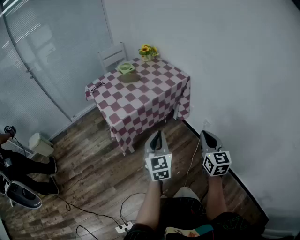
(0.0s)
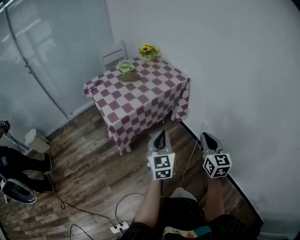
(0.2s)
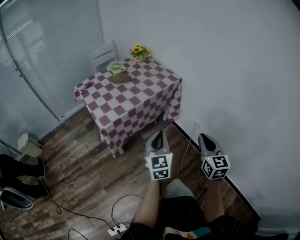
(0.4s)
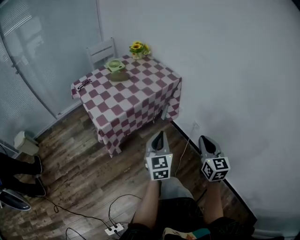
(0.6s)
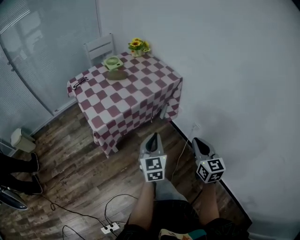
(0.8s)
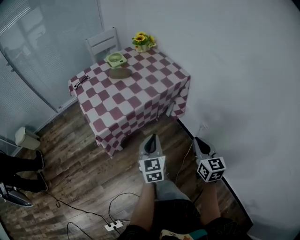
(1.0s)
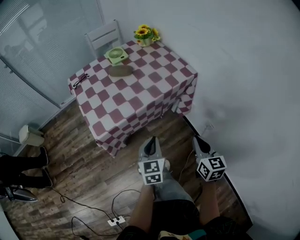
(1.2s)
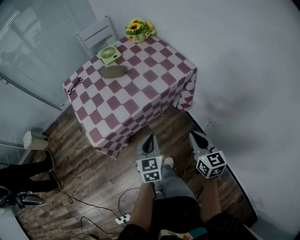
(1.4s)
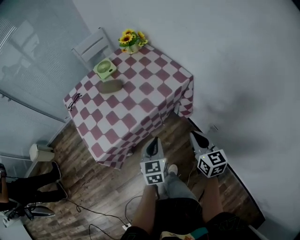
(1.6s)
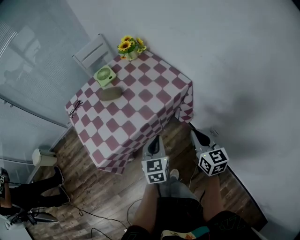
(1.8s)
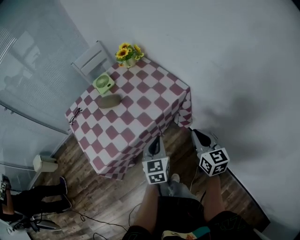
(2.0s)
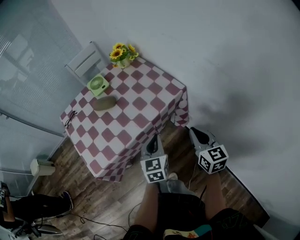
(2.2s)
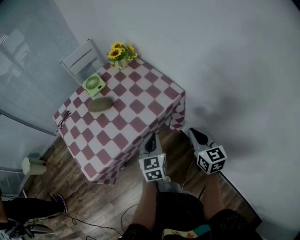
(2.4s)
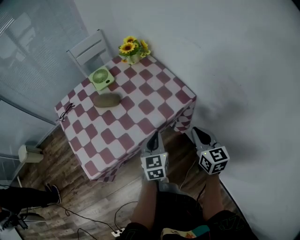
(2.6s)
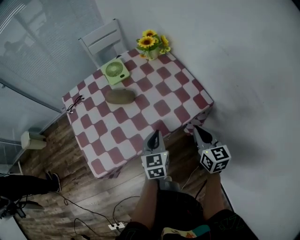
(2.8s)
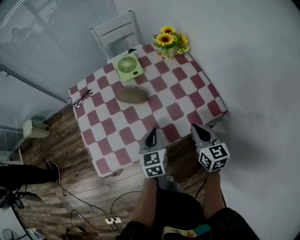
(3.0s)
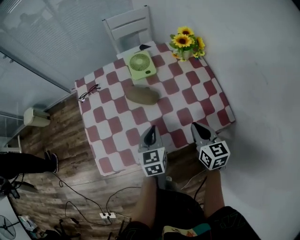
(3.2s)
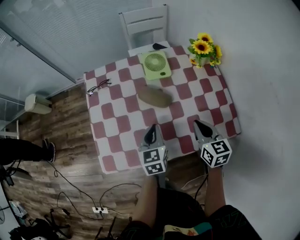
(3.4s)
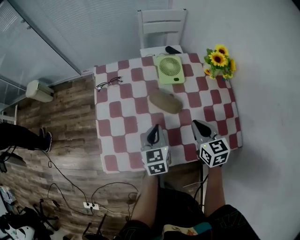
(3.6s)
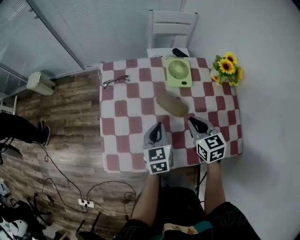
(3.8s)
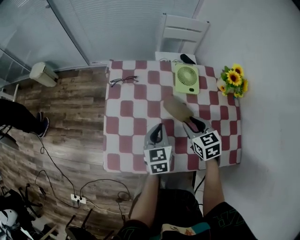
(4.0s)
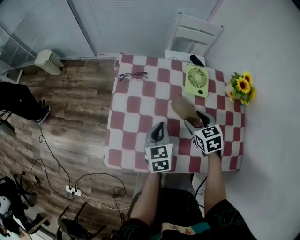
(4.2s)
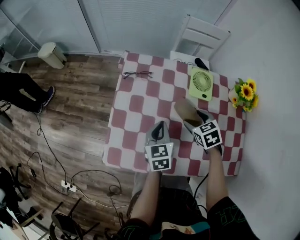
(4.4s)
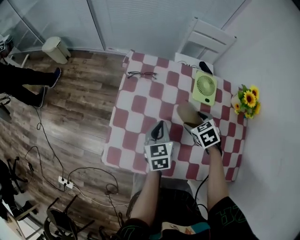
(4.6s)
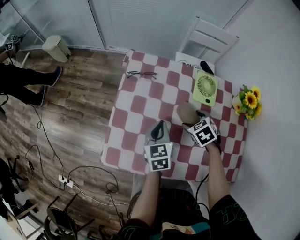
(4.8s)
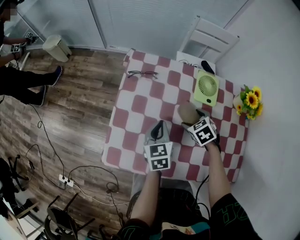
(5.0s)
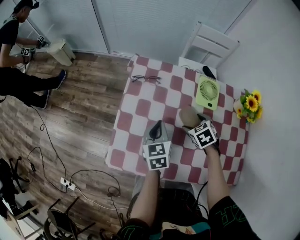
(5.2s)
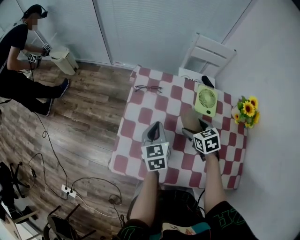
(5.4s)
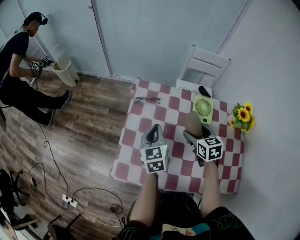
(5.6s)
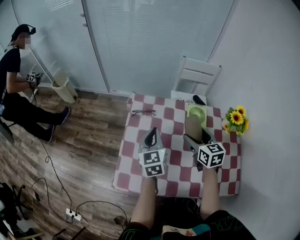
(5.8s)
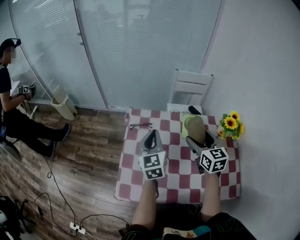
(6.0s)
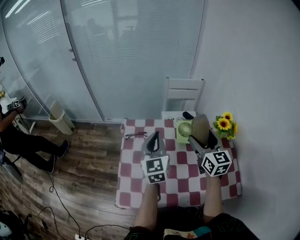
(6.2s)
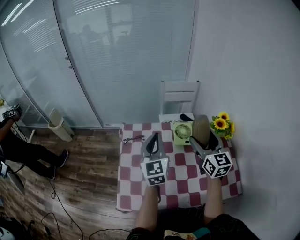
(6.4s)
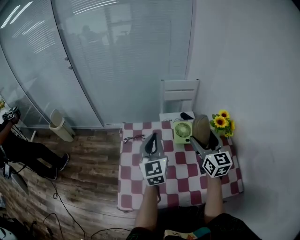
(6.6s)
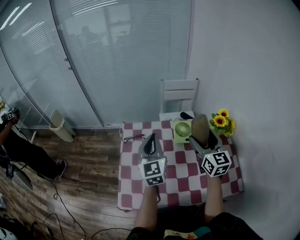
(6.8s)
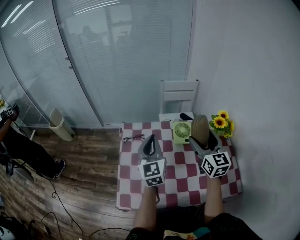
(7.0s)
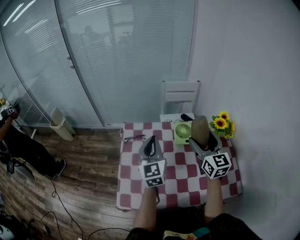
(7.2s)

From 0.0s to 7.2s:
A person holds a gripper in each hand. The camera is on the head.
From 0.0s to 1.4s: Both grippers move forward and downward, some 25 cm. The left gripper swivels roughly 20 degrees.
From 1.4s to 2.8s: Both grippers travel together forward, about 25 cm.
From 2.8s to 4.4s: The right gripper changes place by approximately 40 cm, angles its fingers downward, by some 30 degrees, and opens. Meanwhile the left gripper shifts by approximately 30 cm, and swivels approximately 40 degrees.
From 4.4s to 5.8s: The right gripper is displaced upward by roughly 10 cm, and rotates some 30 degrees; the left gripper shifts approximately 15 cm upward, forward and to the left.
From 5.8s to 7.2s: The two grippers go roughly 15 cm upward and to the right. The right gripper rotates some 30 degrees.

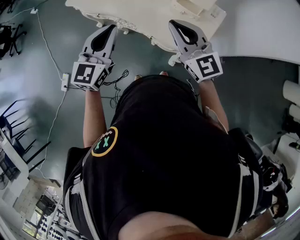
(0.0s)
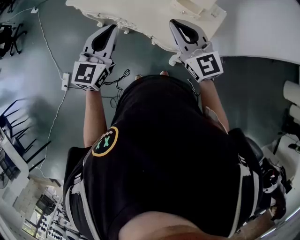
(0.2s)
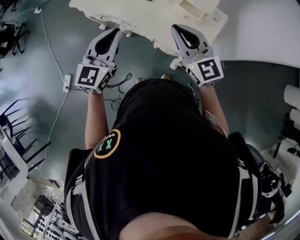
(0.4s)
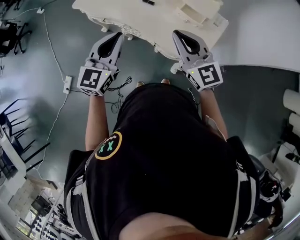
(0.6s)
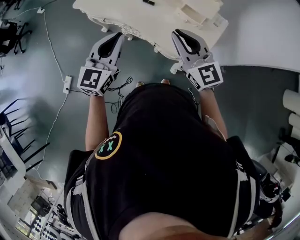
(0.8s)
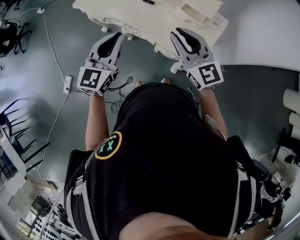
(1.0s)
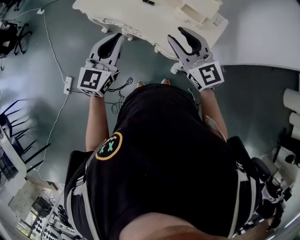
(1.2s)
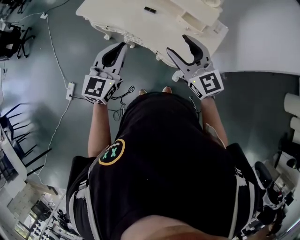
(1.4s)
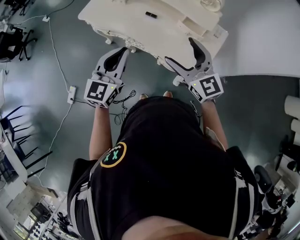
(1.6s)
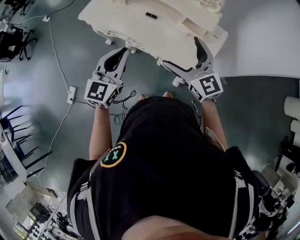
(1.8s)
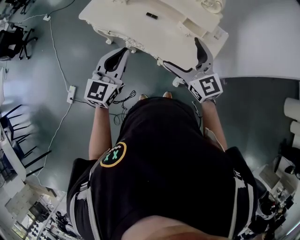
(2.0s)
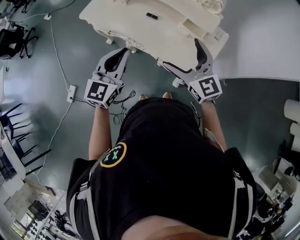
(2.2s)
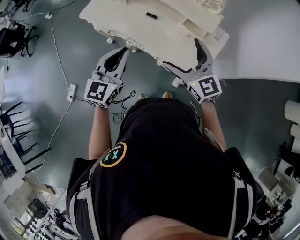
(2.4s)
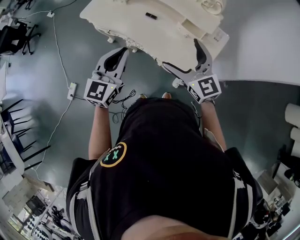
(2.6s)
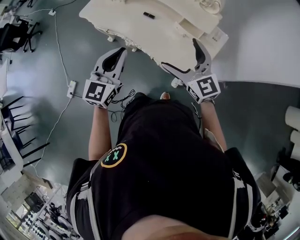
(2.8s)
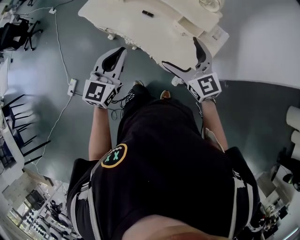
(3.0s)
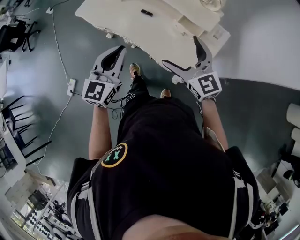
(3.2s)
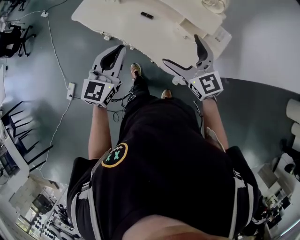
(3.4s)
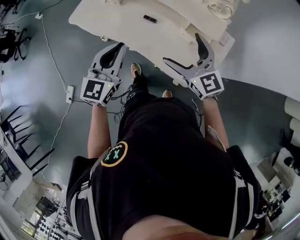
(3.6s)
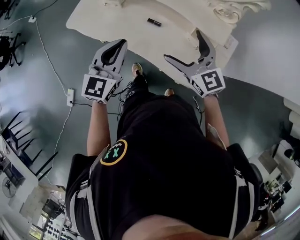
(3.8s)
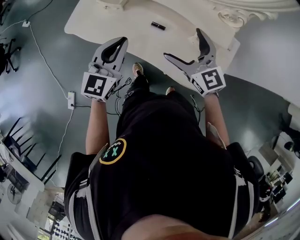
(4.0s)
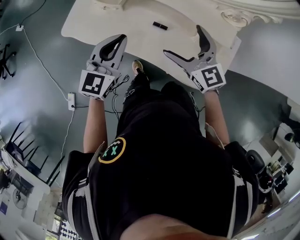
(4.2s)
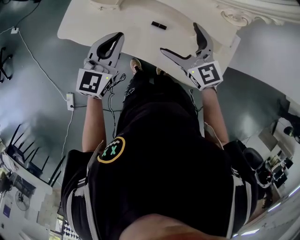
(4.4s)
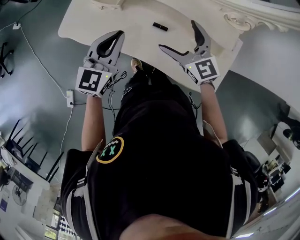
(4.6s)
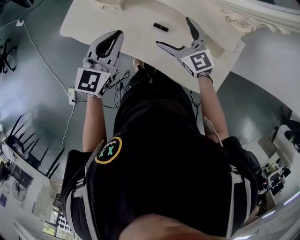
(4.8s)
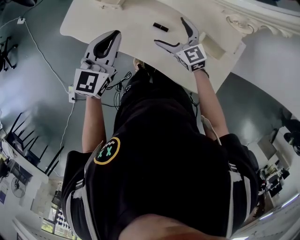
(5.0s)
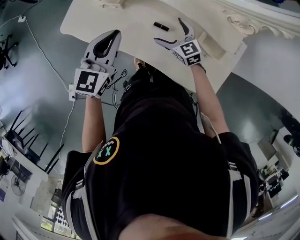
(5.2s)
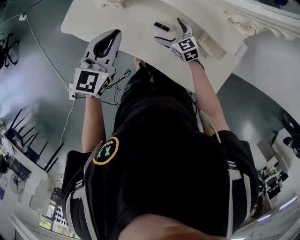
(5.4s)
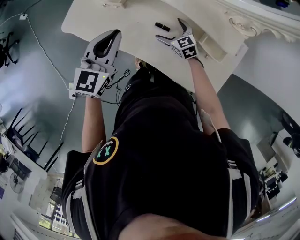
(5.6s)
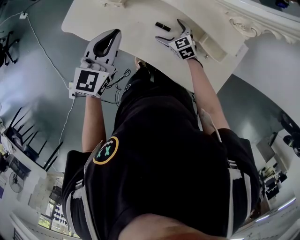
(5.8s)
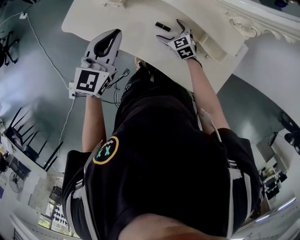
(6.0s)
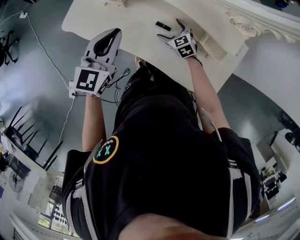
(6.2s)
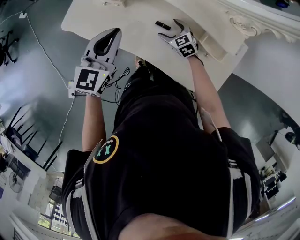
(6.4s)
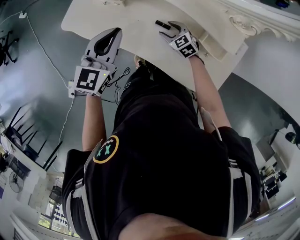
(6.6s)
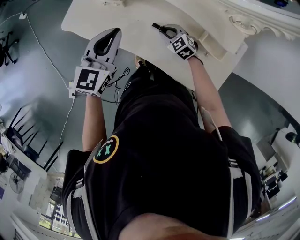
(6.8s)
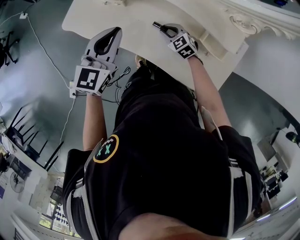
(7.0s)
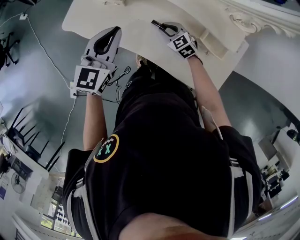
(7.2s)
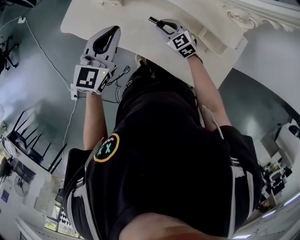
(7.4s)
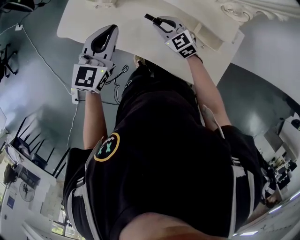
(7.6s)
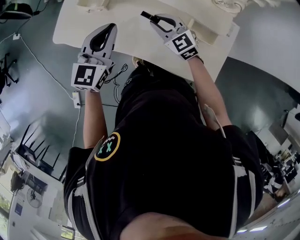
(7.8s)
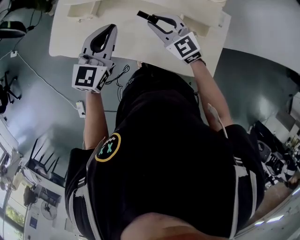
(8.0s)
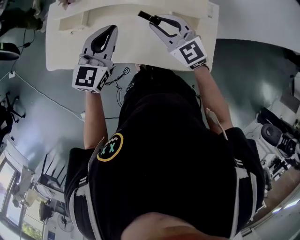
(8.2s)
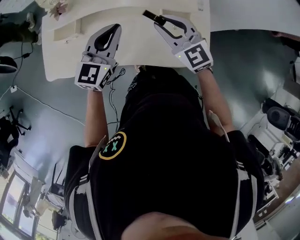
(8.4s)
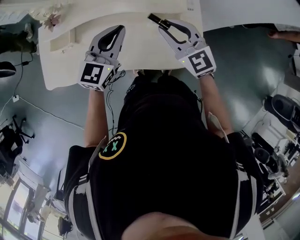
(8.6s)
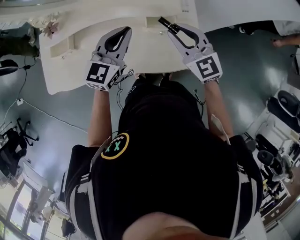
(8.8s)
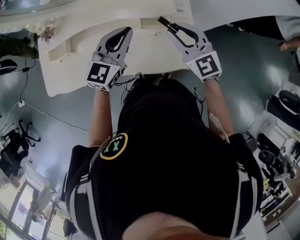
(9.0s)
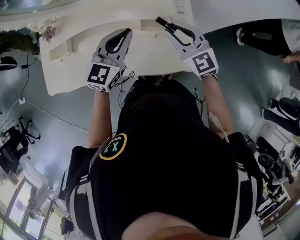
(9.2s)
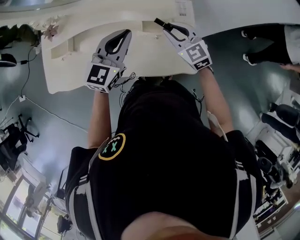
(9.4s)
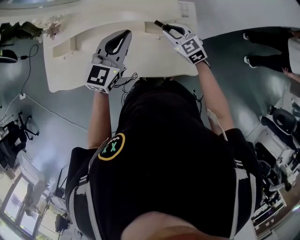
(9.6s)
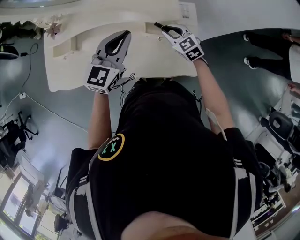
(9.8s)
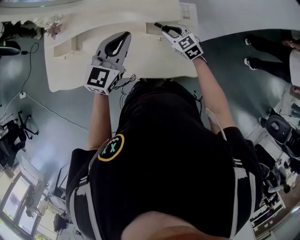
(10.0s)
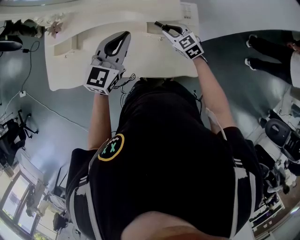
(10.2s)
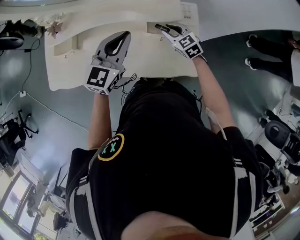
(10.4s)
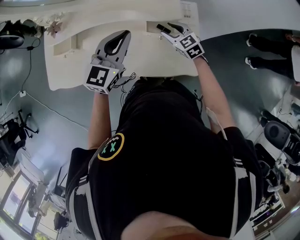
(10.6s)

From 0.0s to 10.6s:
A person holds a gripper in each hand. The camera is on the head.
From 0.0s to 1.6s: The right gripper opens its fingers.
From 1.6s to 3.0s: The grippers both shift to the right by approximately 5 cm.
From 3.0s to 4.6s: Both grippers move forward and to the left, about 30 cm.
From 4.6s to 6.0s: The right gripper travels downward by approximately 20 cm, and rotates roughly 30 degrees.
From 6.0s to 7.6s: The right gripper moves upward, some 10 cm, and closes its fingers.
From 7.6s to 9.0s: The left gripper changes place by roughly 25 cm, and rotates some 30 degrees, while the right gripper moves about 35 cm, and turns by approximately 40 degrees.
From 9.0s to 10.6s: The right gripper is displaced downward by roughly 20 cm, and rotates approximately 20 degrees.

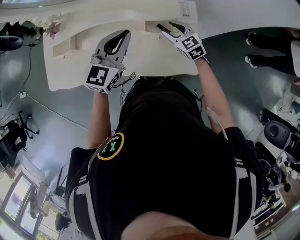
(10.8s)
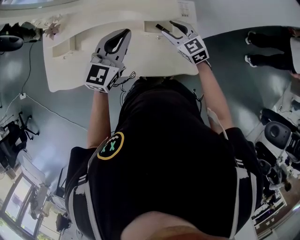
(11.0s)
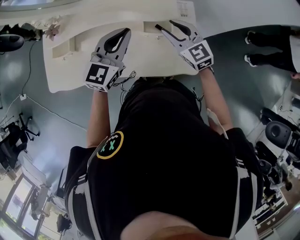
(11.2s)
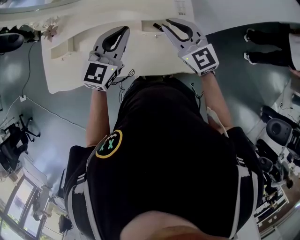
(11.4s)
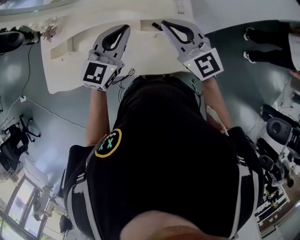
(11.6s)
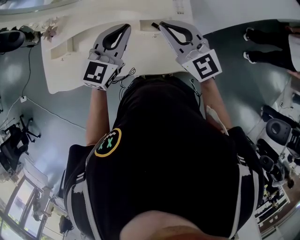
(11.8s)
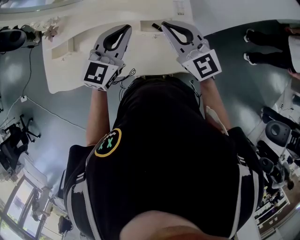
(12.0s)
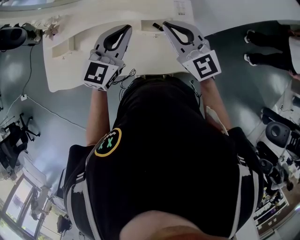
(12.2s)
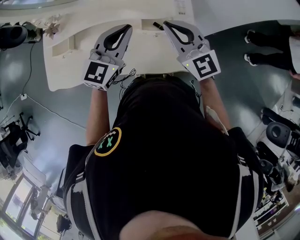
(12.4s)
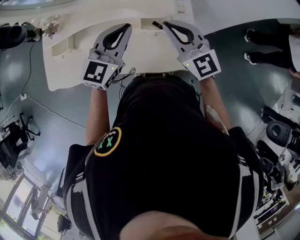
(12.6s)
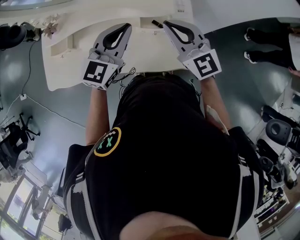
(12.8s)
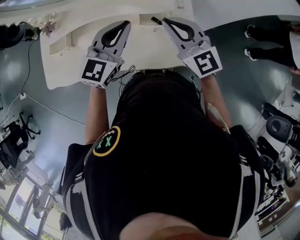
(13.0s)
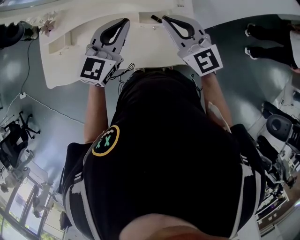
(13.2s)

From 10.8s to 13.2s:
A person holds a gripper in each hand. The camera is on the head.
From 10.8s to 12.0s: The right gripper shifts about 25 cm upward, and points its fingers approximately 30 degrees further upward.
From 12.0s to 13.2s: Both grippers stay put.

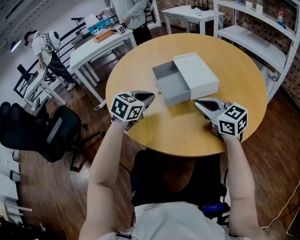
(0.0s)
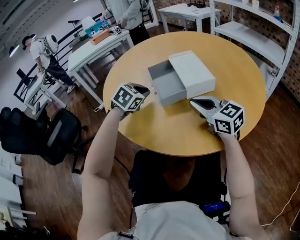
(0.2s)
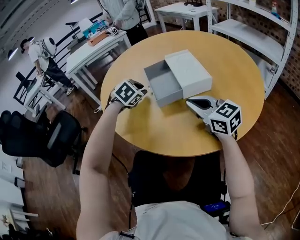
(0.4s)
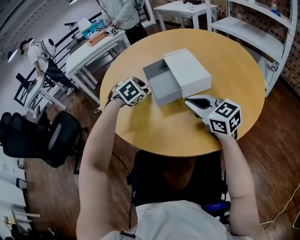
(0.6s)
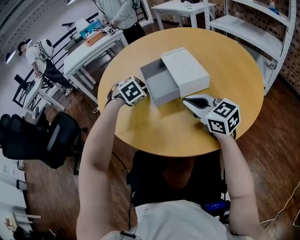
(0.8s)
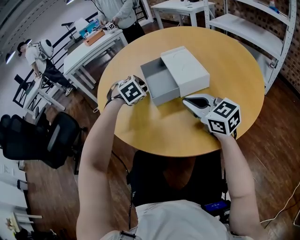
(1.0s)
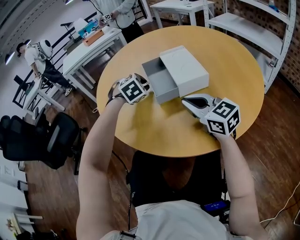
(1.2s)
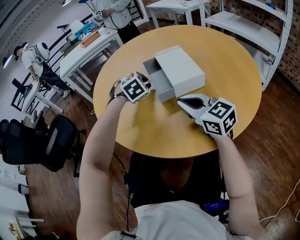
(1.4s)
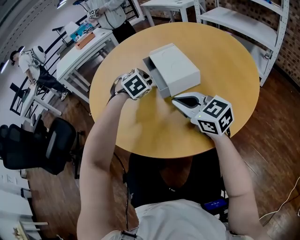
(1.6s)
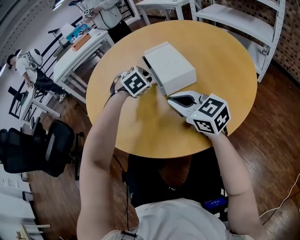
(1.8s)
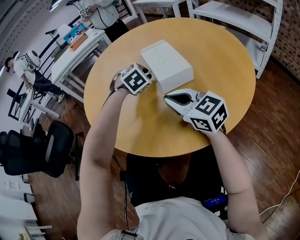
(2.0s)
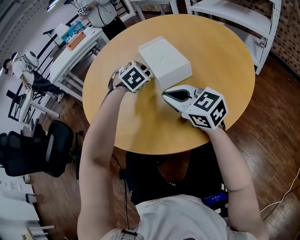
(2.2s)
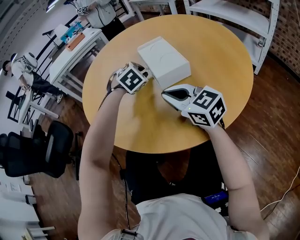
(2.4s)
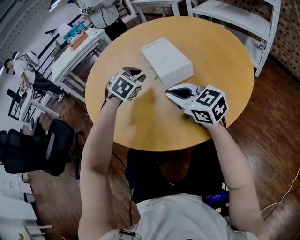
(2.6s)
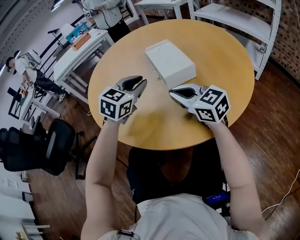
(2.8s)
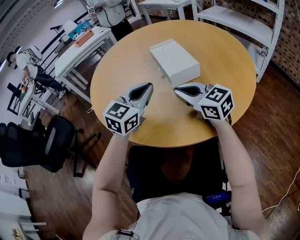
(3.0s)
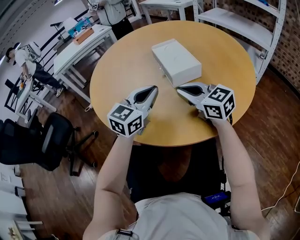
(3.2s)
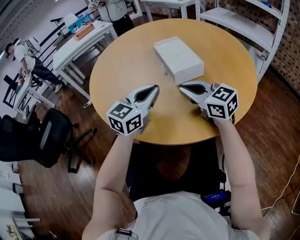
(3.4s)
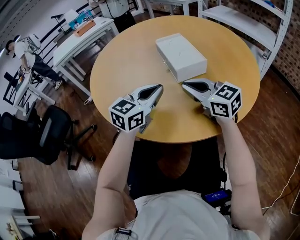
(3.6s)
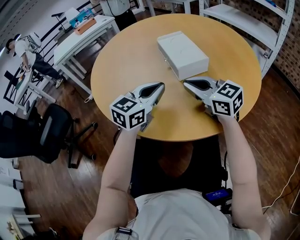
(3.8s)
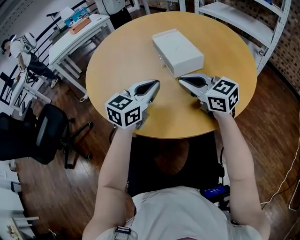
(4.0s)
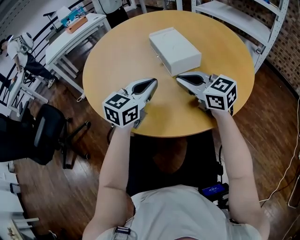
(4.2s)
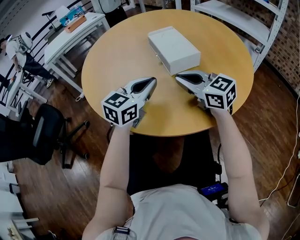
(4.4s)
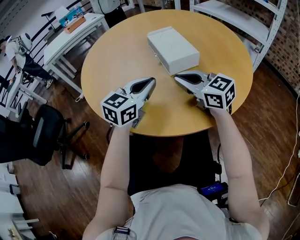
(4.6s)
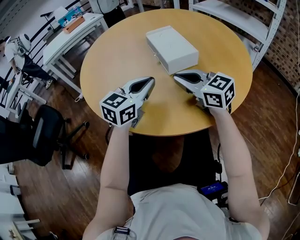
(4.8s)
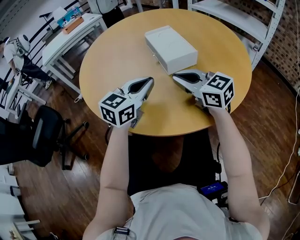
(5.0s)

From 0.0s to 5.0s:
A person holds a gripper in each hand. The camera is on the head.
From 0.0s to 1.6s: The left gripper is displaced to the right and forward by approximately 15 cm, and swivels approximately 40 degrees.
From 1.6s to 3.4s: The left gripper shifts about 15 cm backward and upward, and angles its fingers upward, by some 50 degrees.
From 3.4s to 5.0s: There are only small adjustments of the grippers.
